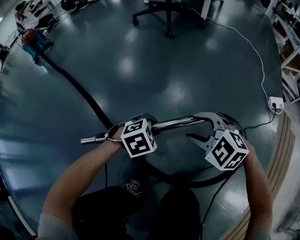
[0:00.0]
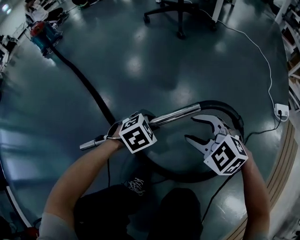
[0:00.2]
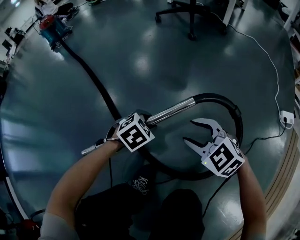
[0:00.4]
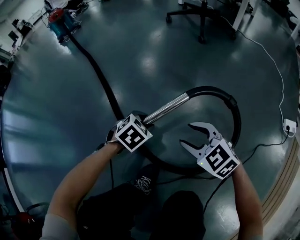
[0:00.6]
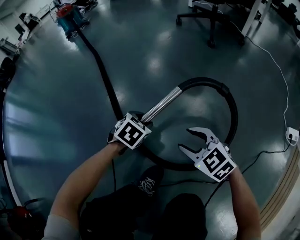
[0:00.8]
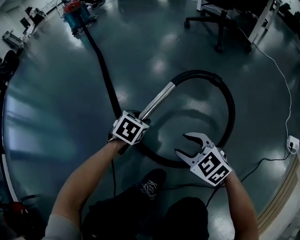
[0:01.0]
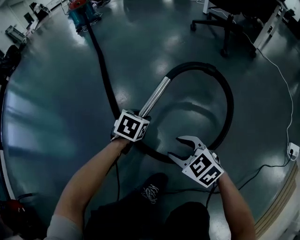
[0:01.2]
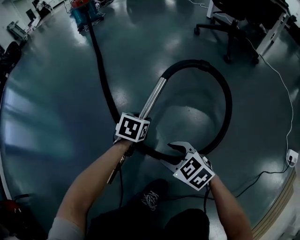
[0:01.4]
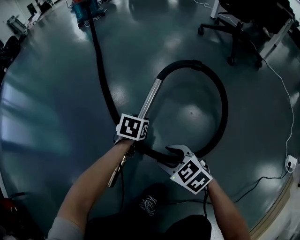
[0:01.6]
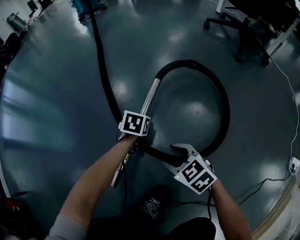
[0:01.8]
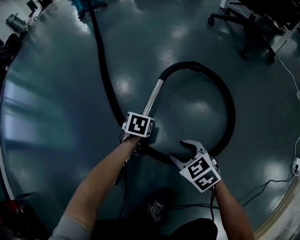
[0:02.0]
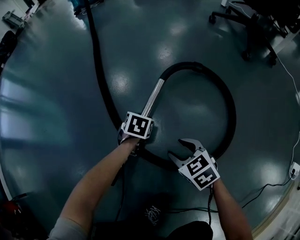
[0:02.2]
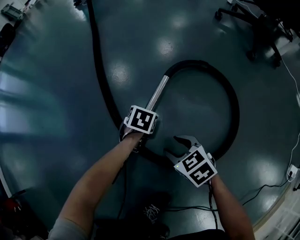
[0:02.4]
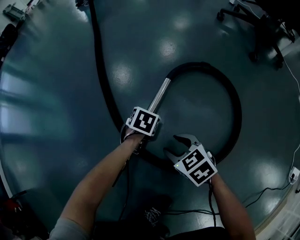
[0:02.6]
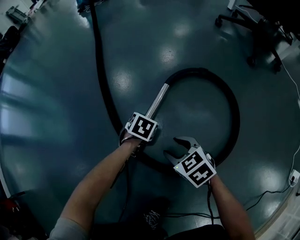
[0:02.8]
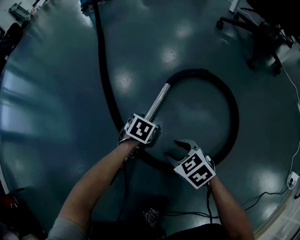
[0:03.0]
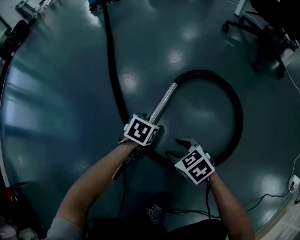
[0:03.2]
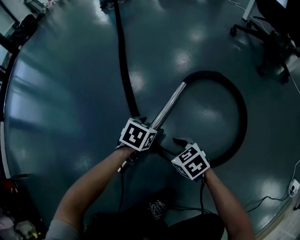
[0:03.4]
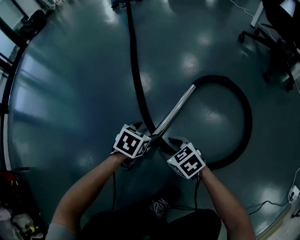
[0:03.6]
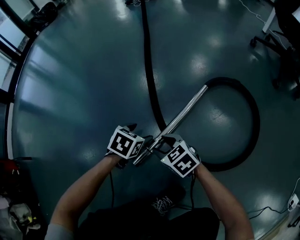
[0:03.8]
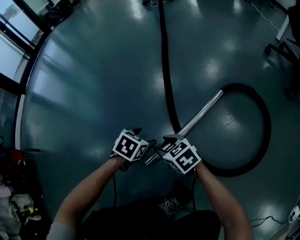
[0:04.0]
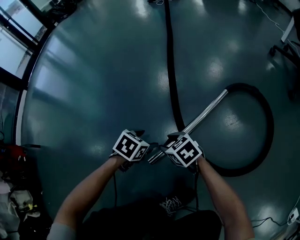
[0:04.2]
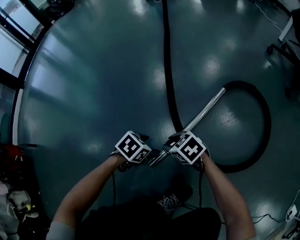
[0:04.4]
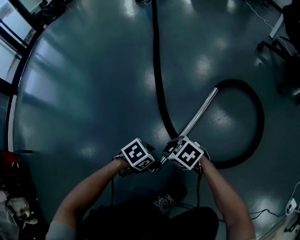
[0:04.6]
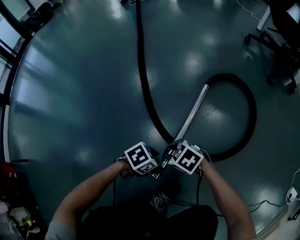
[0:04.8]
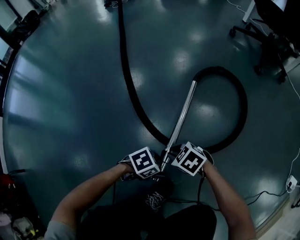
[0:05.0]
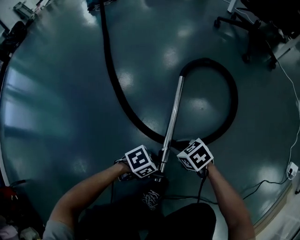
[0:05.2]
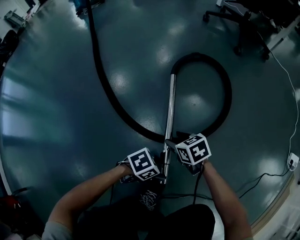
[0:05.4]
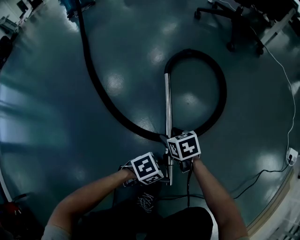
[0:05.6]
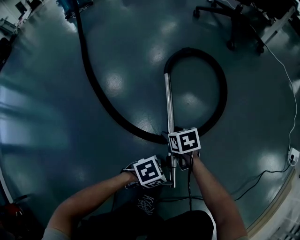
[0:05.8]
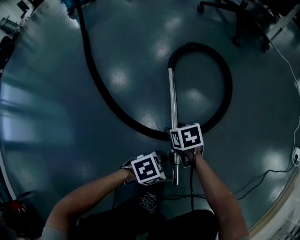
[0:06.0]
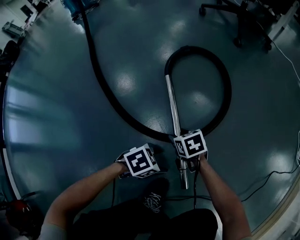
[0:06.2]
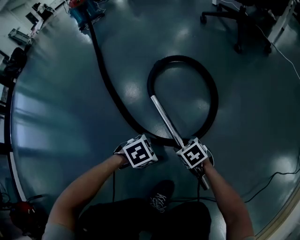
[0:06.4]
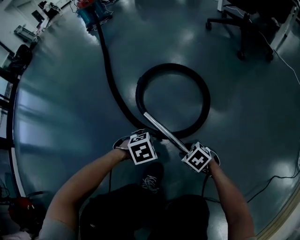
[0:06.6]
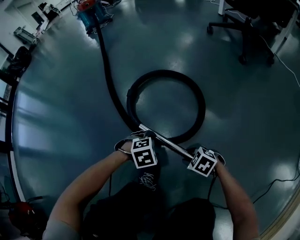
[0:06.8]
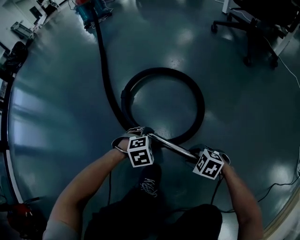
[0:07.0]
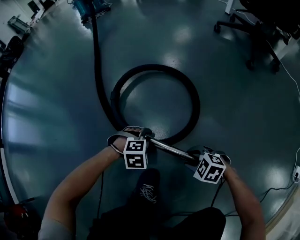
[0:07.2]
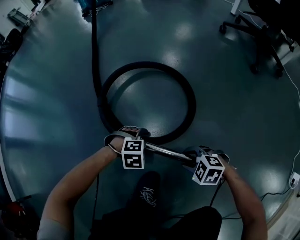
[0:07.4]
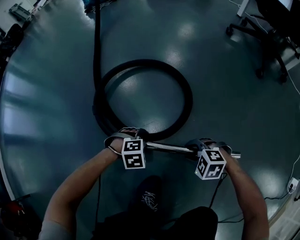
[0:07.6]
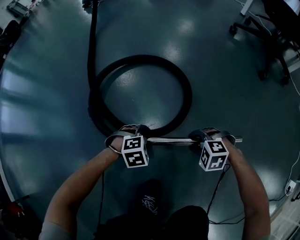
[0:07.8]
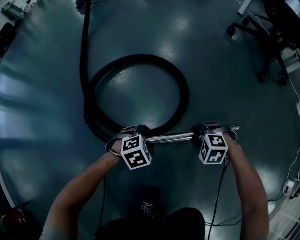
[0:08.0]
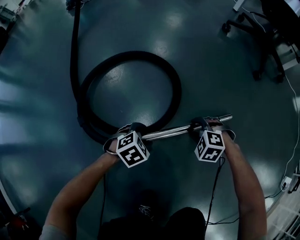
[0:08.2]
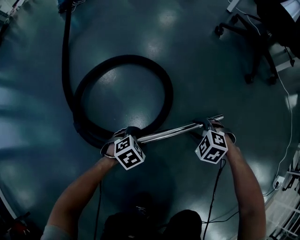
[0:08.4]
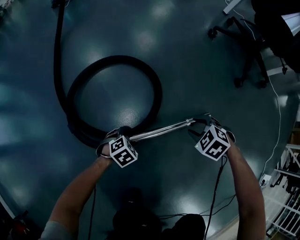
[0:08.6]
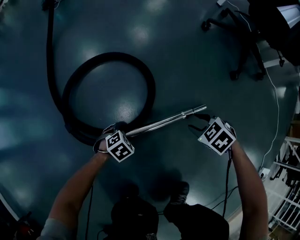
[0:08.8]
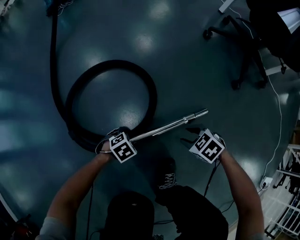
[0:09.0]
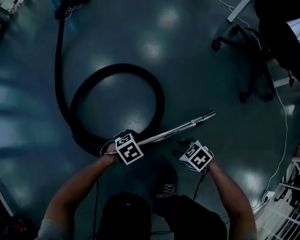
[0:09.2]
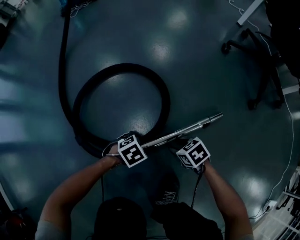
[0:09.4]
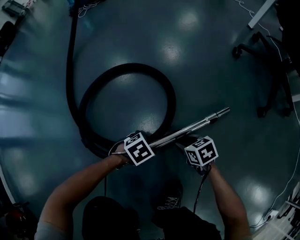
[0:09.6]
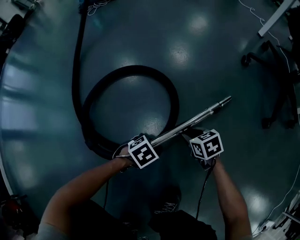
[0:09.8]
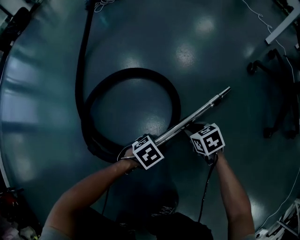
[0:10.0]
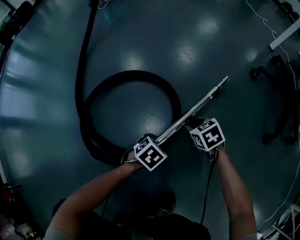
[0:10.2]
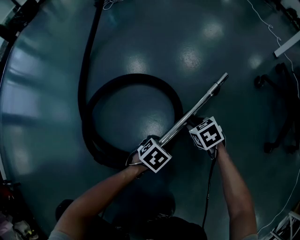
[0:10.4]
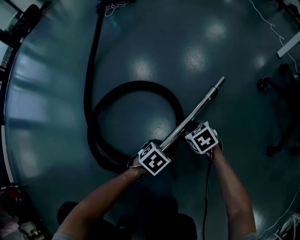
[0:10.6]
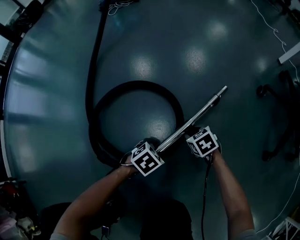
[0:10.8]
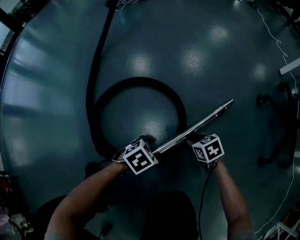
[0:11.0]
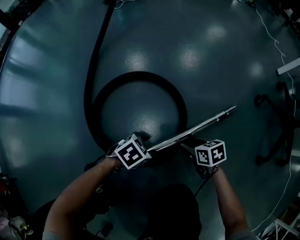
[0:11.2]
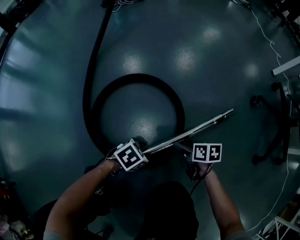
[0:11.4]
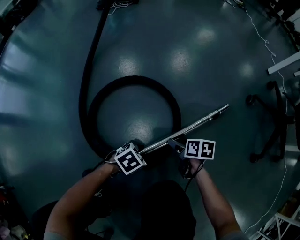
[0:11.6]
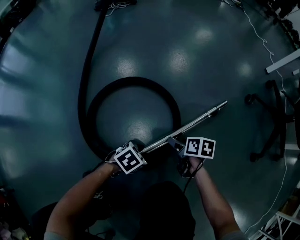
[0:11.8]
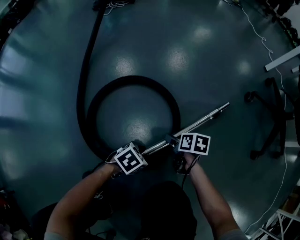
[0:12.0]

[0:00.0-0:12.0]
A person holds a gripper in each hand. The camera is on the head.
0:00.0 to 0:01.6: The right gripper shifts by some 30 cm, and swivels some 30 degrees; the left gripper moves some 35 cm, and rotates around the line of its fingers by roughly 70 degrees, counterclockwise from behind.
0:01.6 to 0:03.0: The right gripper travels forward and downward by approximately 10 cm. The left gripper is displaced downward and forward by approximately 10 cm, and opens.
0:03.0 to 0:04.4: The left gripper moves approximately 25 cm. Meanwhile the right gripper shifts by roughly 20 cm, and changes its angle by about 30 degrees.
0:04.4 to 0:06.0: The right gripper ends up some 30 cm from where it was, and rotates around the line of its fingers by approximately 50 degrees, clockwise from behind, while the left gripper ends up about 30 cm from where it was, and swivels roughly 50 degrees.
0:06.0 to 0:07.6: The left gripper shifts by approximately 35 cm, and swivels roughly 40 degrees. The right gripper ends up some 10 cm from where it was, and rotates around the line of its fingers by roughly 70 degrees, counterclockwise from behind.
0:07.6 to 0:09.0: The right gripper moves roughly 25 cm, and turns by approximately 40 degrees, while the left gripper moves about 20 cm, and turns by about 30 degrees.
0:09.0 to 0:10.4: The right gripper changes place by approximately 30 cm; the left gripper ends up roughly 20 cm from where it was, and changes its angle by about 30 degrees.
0:10.4 to 0:12.0: The left gripper changes place by approximately 10 cm. The right gripper ends up some 5 cm from where it was, rotates around the line of its fingers by roughly 50 degrees, clockwise from behind, and opens up.

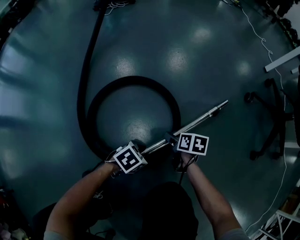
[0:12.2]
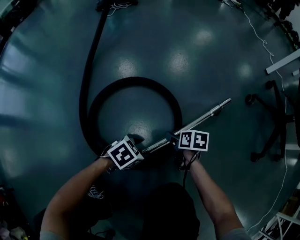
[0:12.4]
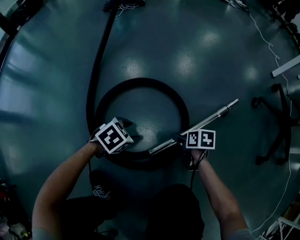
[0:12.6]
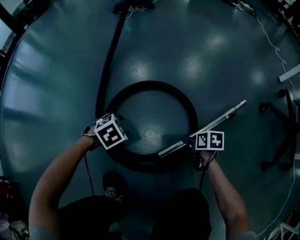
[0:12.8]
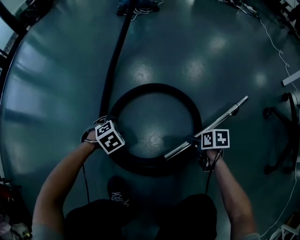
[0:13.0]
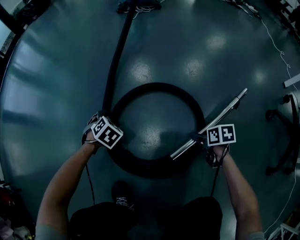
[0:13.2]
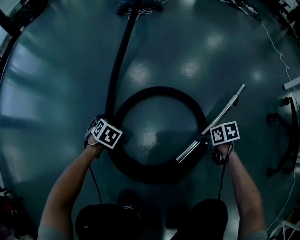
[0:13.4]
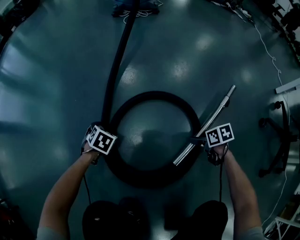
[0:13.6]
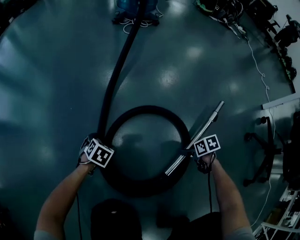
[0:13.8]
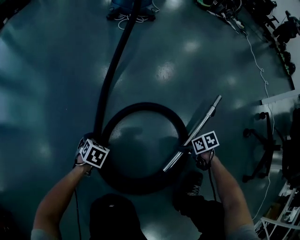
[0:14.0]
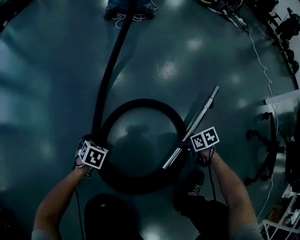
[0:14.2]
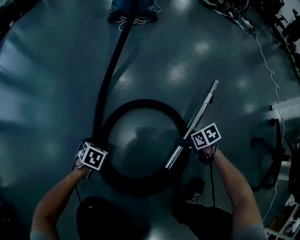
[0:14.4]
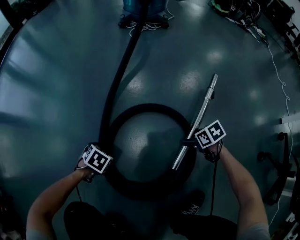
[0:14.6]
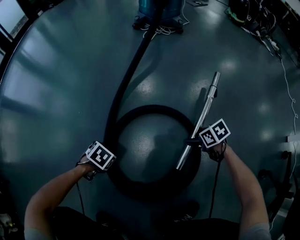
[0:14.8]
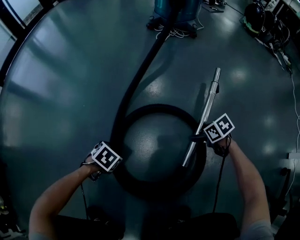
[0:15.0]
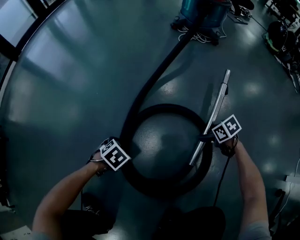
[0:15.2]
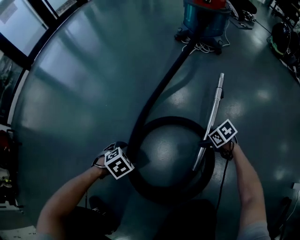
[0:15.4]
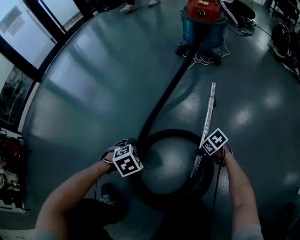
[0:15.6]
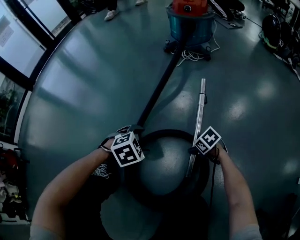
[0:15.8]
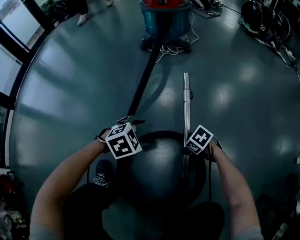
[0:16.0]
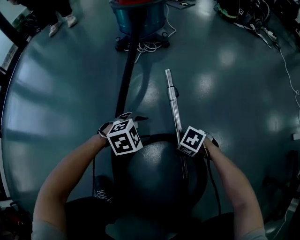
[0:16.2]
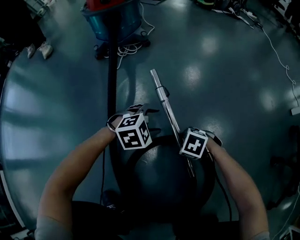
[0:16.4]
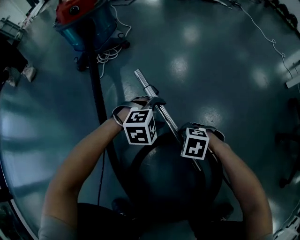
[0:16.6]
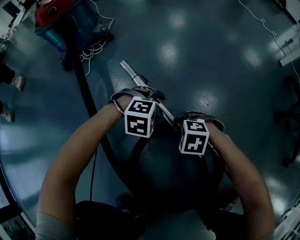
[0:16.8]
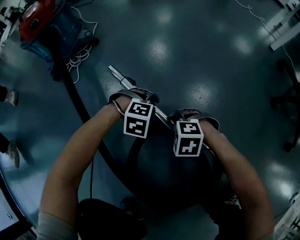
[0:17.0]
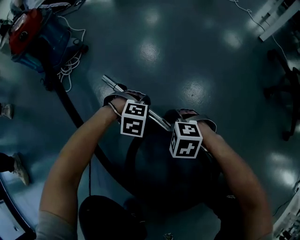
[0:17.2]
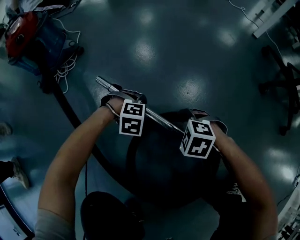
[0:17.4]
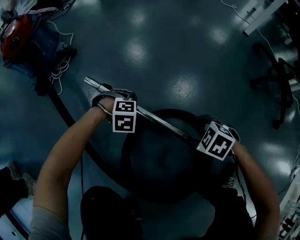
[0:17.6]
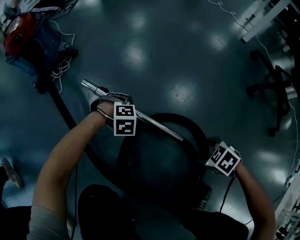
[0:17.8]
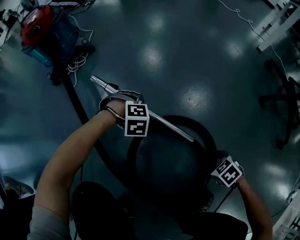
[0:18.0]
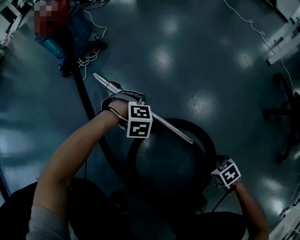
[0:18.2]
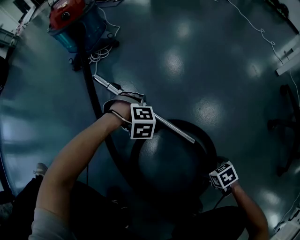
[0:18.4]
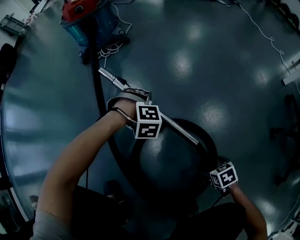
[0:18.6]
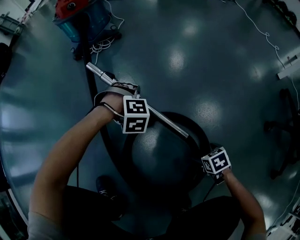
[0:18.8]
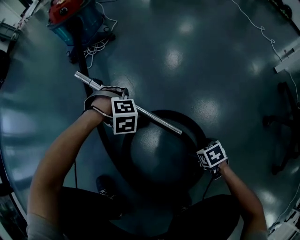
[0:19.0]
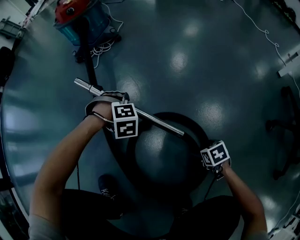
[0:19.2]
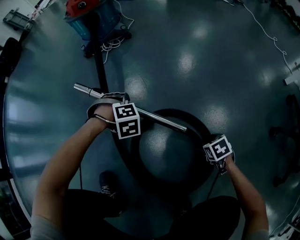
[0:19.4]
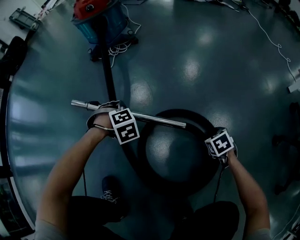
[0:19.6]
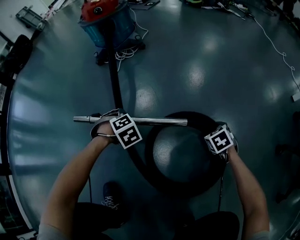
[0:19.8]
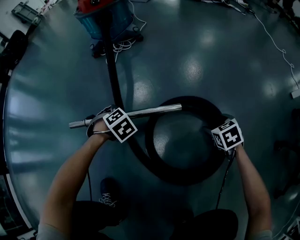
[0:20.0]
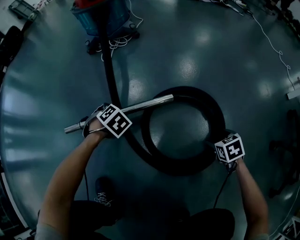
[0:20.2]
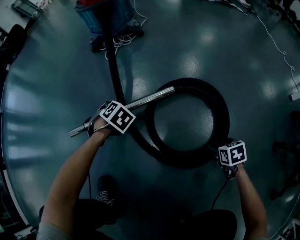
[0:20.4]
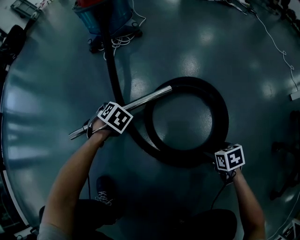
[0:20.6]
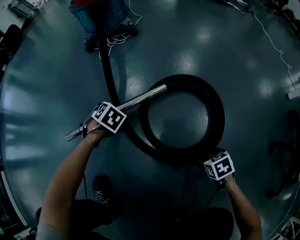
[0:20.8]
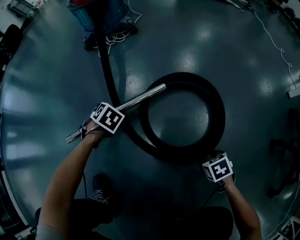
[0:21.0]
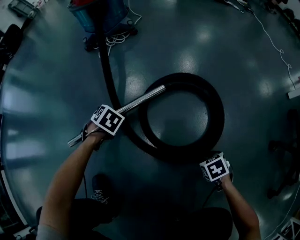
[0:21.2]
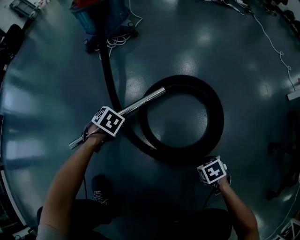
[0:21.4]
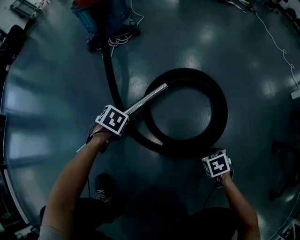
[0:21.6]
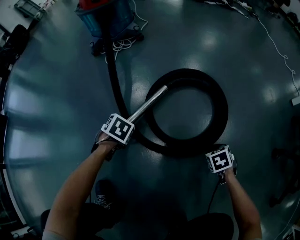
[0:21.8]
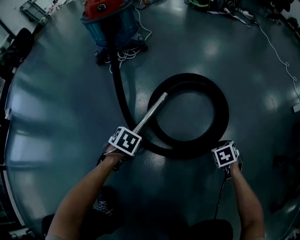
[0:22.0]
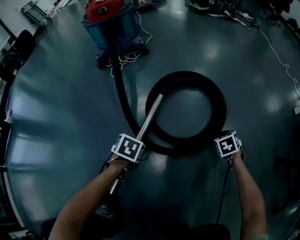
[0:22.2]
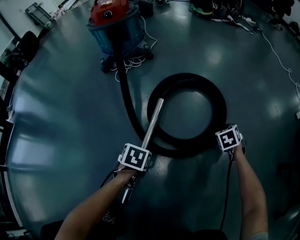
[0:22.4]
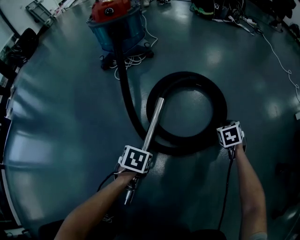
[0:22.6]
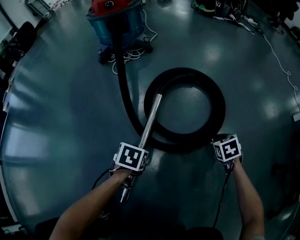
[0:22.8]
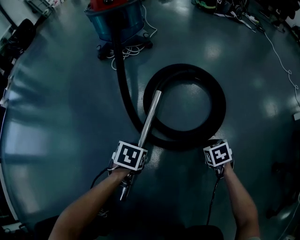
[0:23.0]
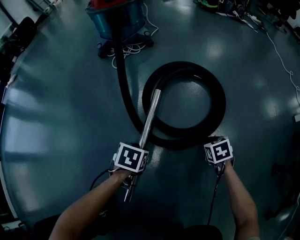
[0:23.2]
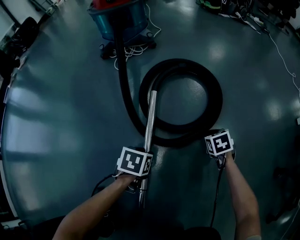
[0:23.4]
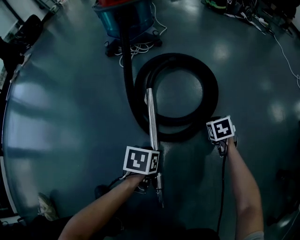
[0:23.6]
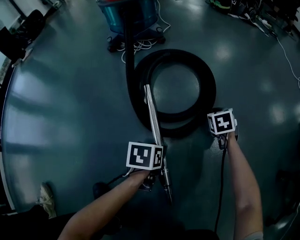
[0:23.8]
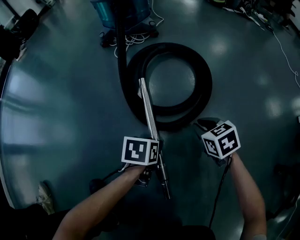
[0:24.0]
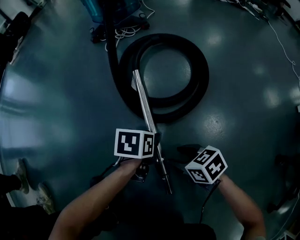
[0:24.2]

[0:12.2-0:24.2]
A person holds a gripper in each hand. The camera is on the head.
0:12.2 to 0:13.8: The left gripper moves some 40 cm, and turns by approximately 40 degrees, while the right gripper changes place by about 15 cm, and rotates about 30 degrees.
0:13.8 to 0:15.2: The right gripper changes place by approximately 30 cm, and rolls counterclockwise, seen from behind, by roughly 50 degrees. Meanwhile the left gripper changes place by about 10 cm.
0:15.2 to 0:16.6: The right gripper changes place by some 10 cm. The left gripper changes place by about 40 cm, and twists about 90 degrees clockwise, seen from behind.
0:16.6 to 0:18.2: The left gripper reaches about 10 cm downward, then returns, and rotates approximately 30 degrees. Meanwhile the right gripper changes place by approximately 30 cm, and rolls clockwise, seen from behind, by some 60 degrees.
0:18.2 to 0:19.8: The right gripper changes place by roughly 25 cm, and changes its angle by some 30 degrees; the left gripper moves roughly 15 cm, and rotates around the line of its fingers by some 50 degrees, counterclockwise from behind.
0:19.8 to 0:21.2: The left gripper changes its angle by approximately 30 degrees; the right gripper changes place by roughly 15 cm, and closes.
0:21.2 to 0:22.6: The left gripper moves about 10 cm, and turns by about 30 degrees; the right gripper ends up some 30 cm from where it was, and changes its angle by about 30 degrees.
0:22.6 to 0:24.2: The right gripper shifts by approximately 30 cm, changes its angle by about 50 degrees, and opens. Meanwhile the left gripper moves some 5 cm, and changes its angle by roughly 20 degrees.
